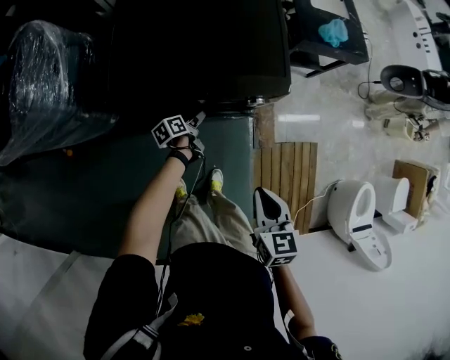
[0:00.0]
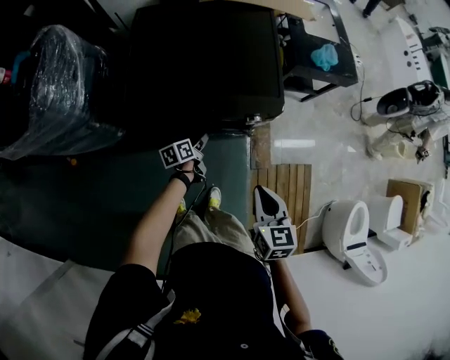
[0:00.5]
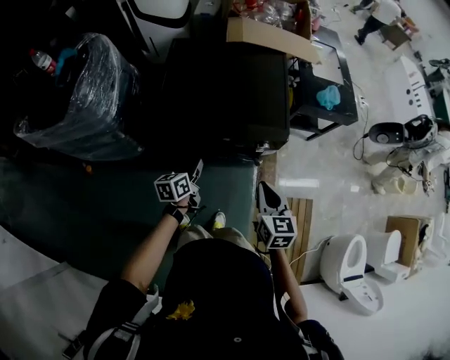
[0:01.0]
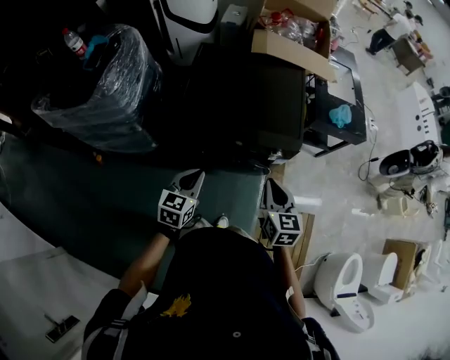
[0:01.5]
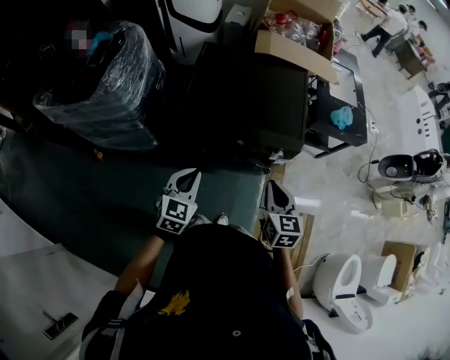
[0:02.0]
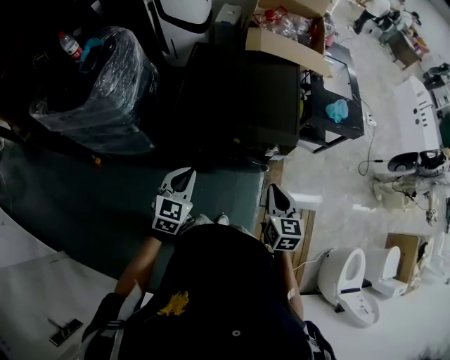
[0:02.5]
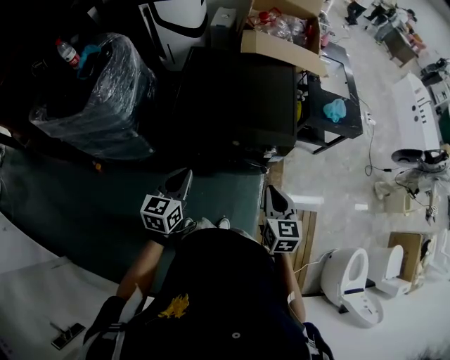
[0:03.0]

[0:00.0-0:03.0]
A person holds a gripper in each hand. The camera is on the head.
0:00.0 to 0:01.5: The right gripper travels upward, forward and to the left by some 15 cm; the left gripper shifts approximately 35 cm upward and backward, rotates around the line of its fingers by about 60 degrees, clockwise from behind, and closes its fingers.
0:01.5 to 0:03.0: The left gripper changes place by about 5 cm.

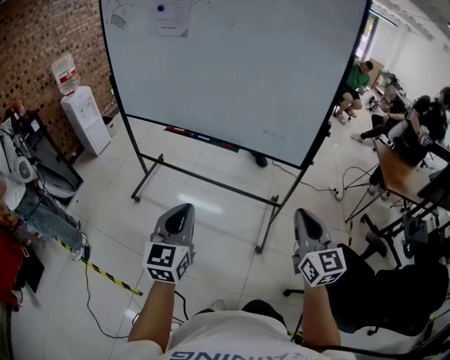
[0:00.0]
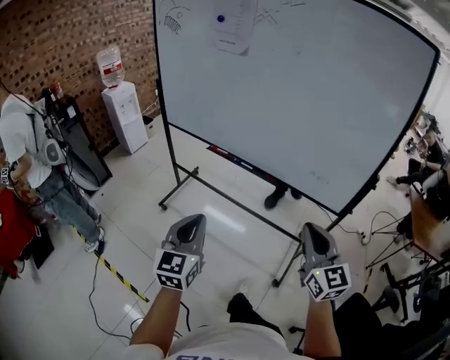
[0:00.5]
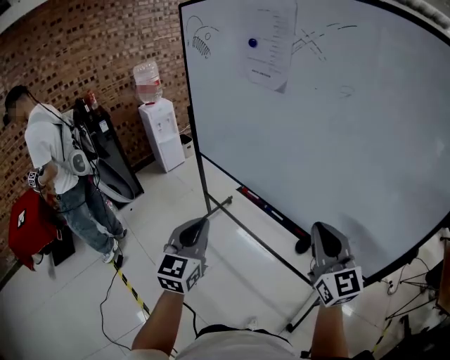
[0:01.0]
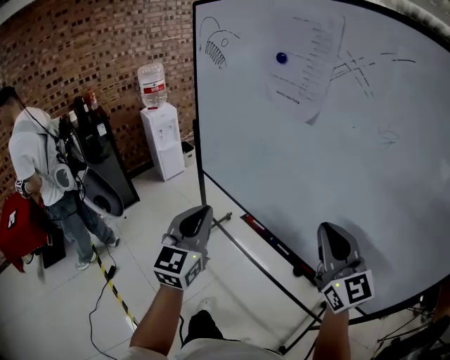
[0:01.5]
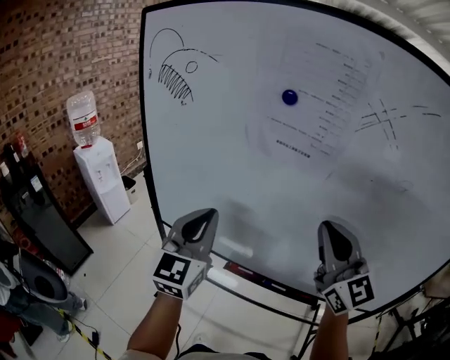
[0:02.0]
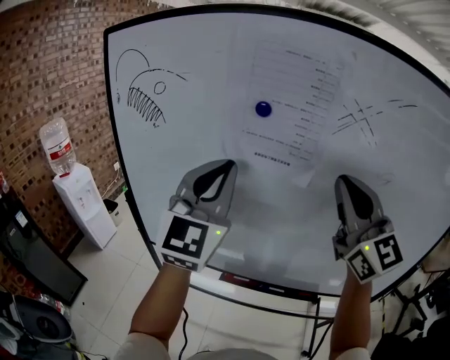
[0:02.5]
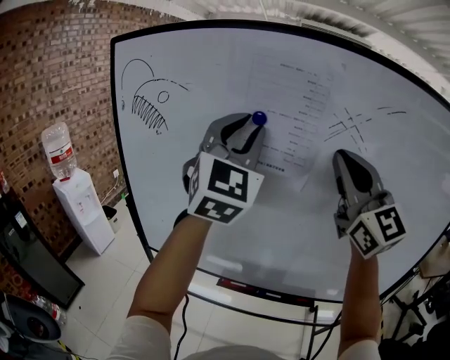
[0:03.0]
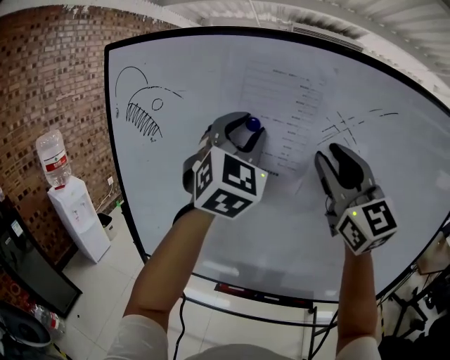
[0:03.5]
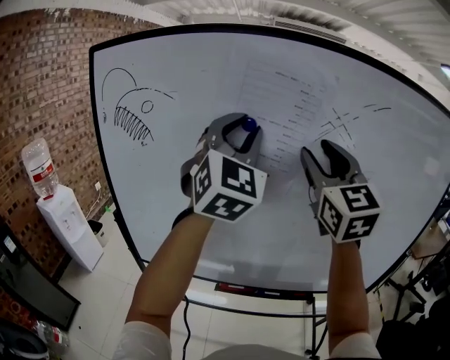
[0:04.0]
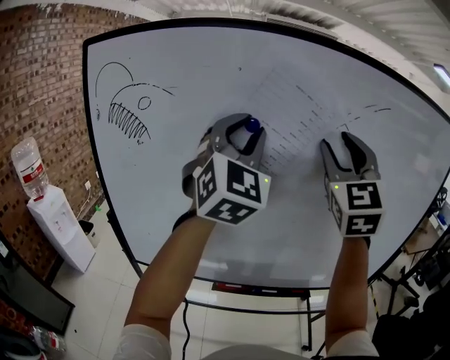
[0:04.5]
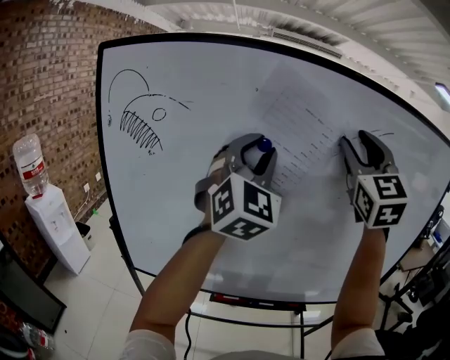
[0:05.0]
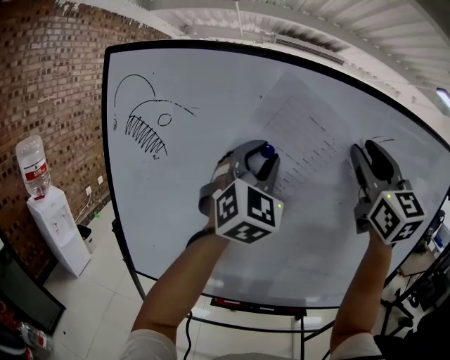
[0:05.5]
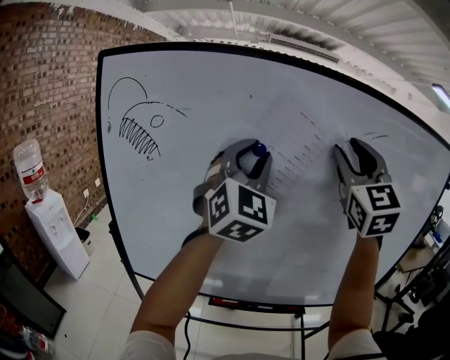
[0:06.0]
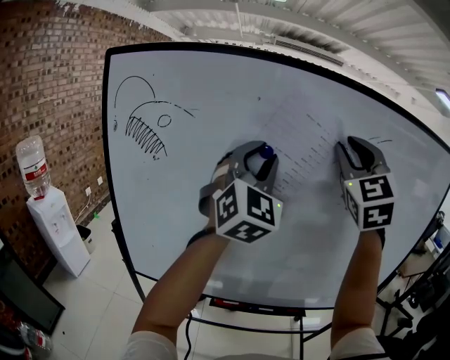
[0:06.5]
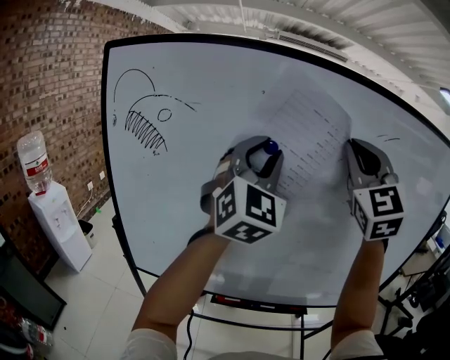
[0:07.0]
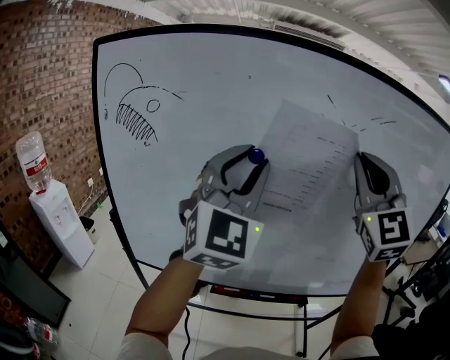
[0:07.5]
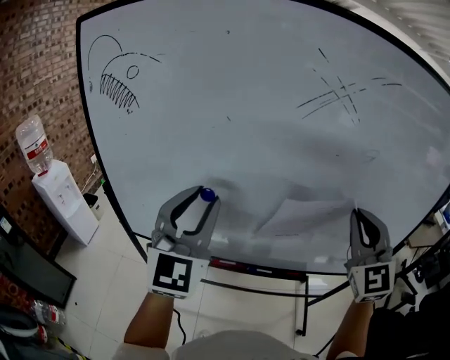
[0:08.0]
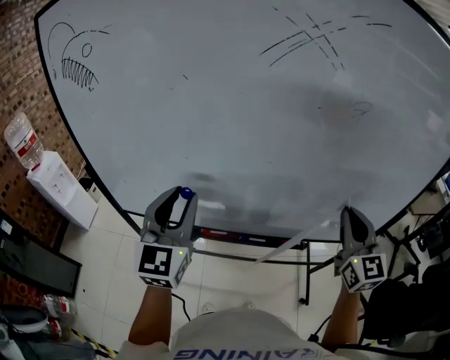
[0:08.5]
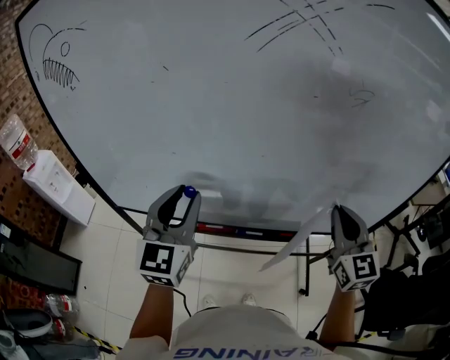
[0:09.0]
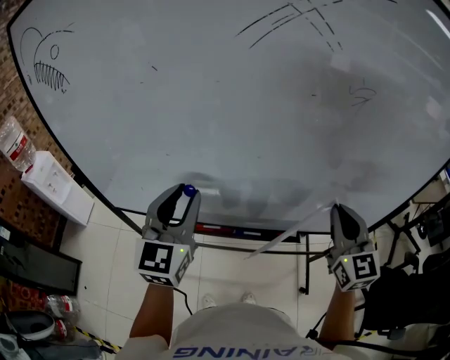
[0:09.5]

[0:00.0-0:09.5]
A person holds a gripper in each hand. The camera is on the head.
0:00.0 to 0:02.0: The two grippers travel together, forward, approximately 60 cm. The right gripper turns by some 20 degrees.
0:02.0 to 0:04.0: The left gripper is displaced upward and to the right by approximately 25 cm, rotates about 30 degrees, and opens; the right gripper is displaced upward and forward by approximately 20 cm, changes its angle by some 30 degrees, and opens.
0:04.0 to 0:05.5: The right gripper heads upward, covering approximately 10 cm.
0:05.5 to 0:07.5: The right gripper heads downward, covering about 5 cm, rotates some 20 degrees, and closes. Meanwhile the left gripper heads backward, covering approximately 5 cm.
0:07.5 to 0:09.5: The left gripper travels downward by some 25 cm, and turns by some 40 degrees. Meanwhile the right gripper travels downward and to the right by approximately 35 cm, and turns by some 40 degrees.

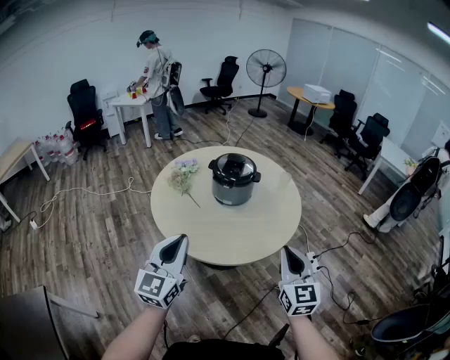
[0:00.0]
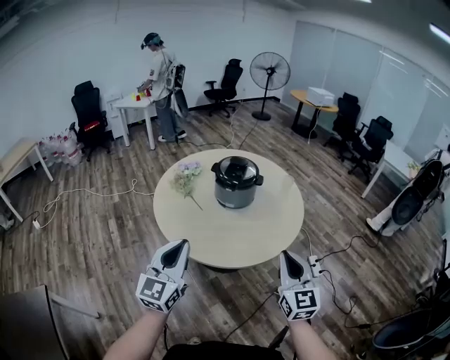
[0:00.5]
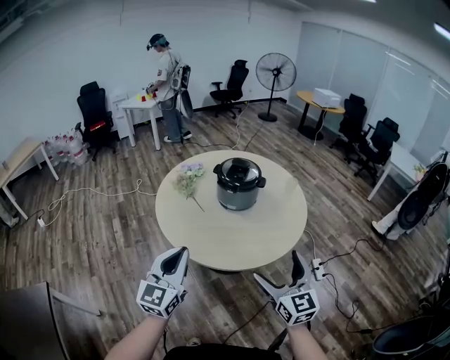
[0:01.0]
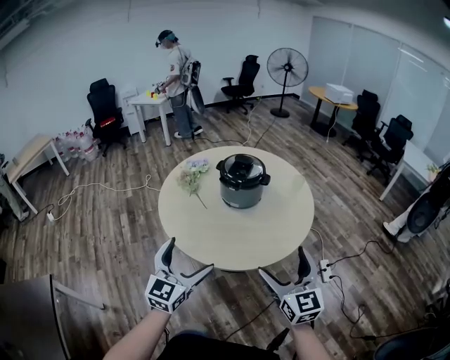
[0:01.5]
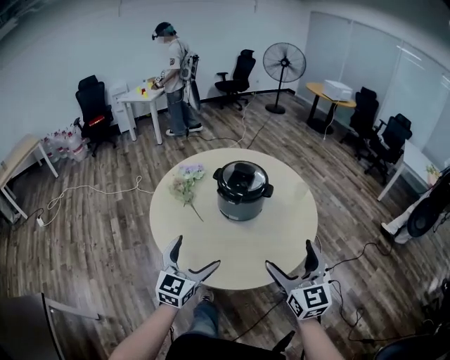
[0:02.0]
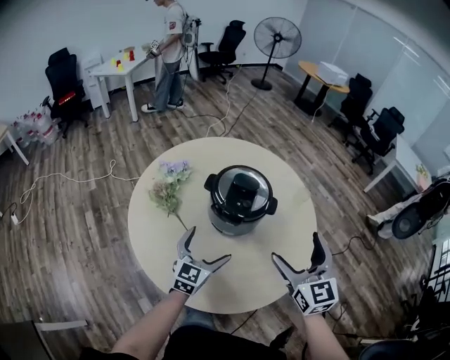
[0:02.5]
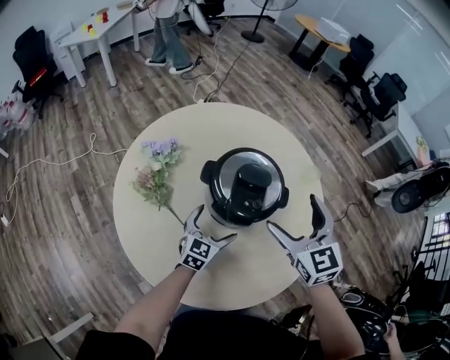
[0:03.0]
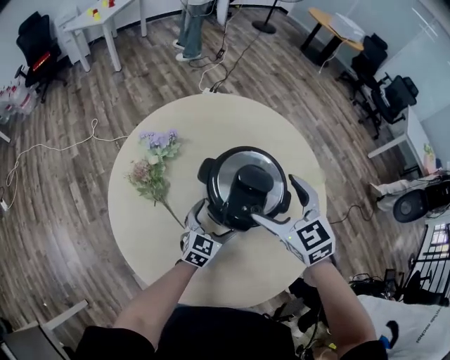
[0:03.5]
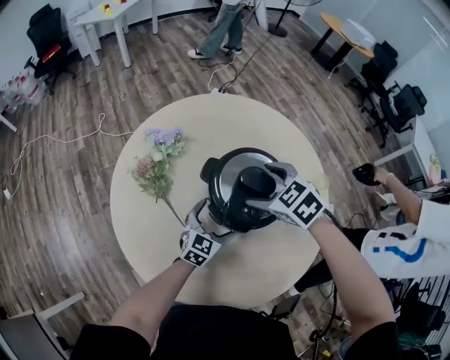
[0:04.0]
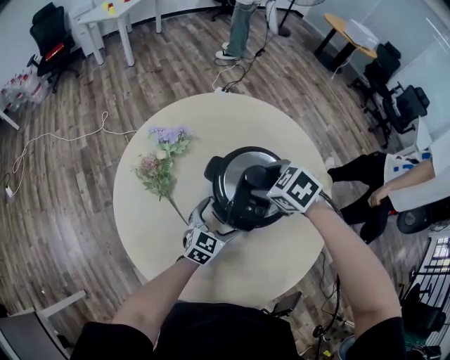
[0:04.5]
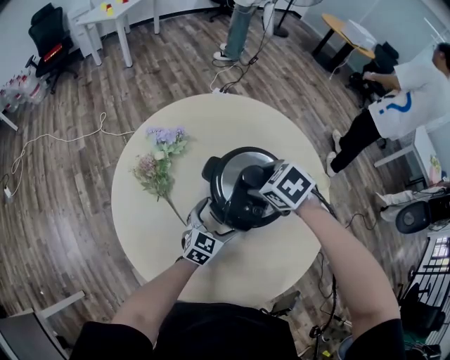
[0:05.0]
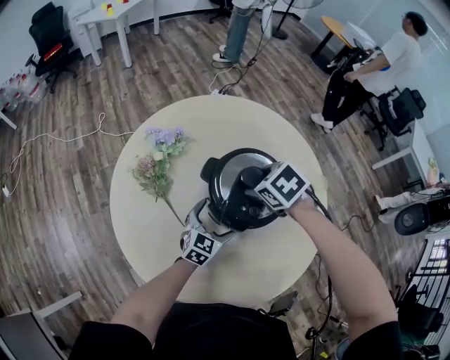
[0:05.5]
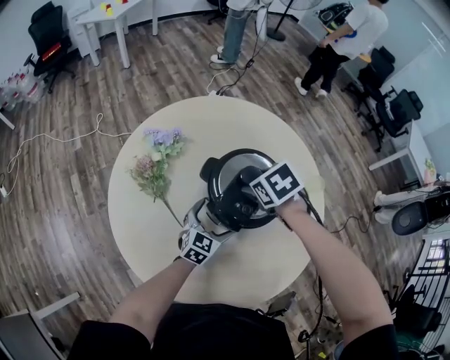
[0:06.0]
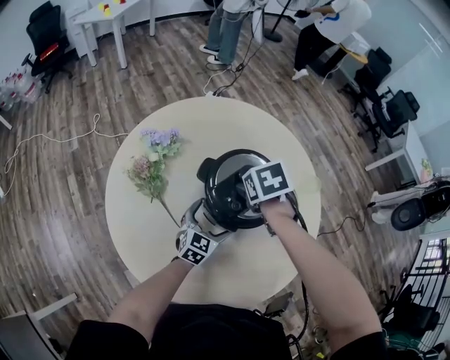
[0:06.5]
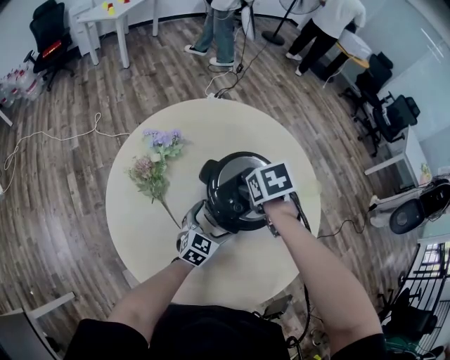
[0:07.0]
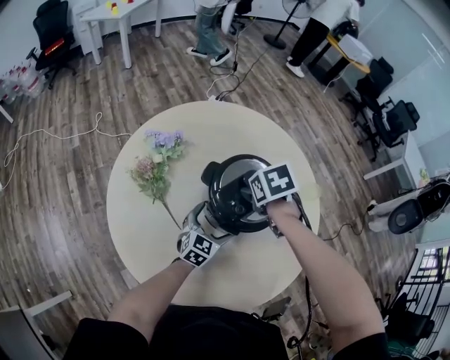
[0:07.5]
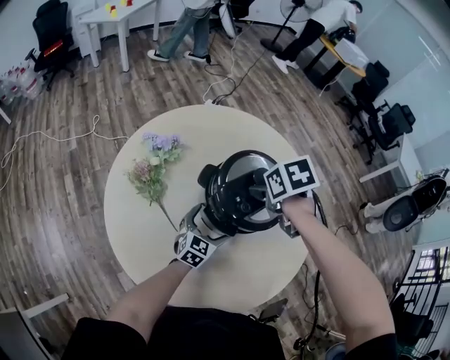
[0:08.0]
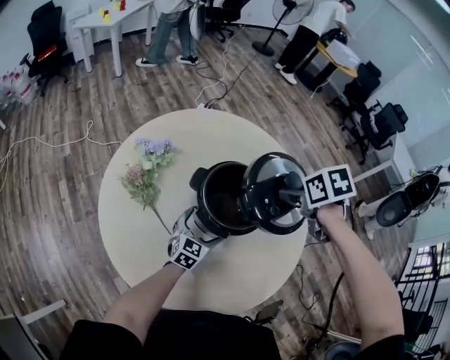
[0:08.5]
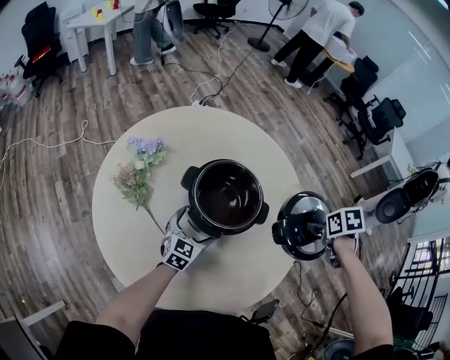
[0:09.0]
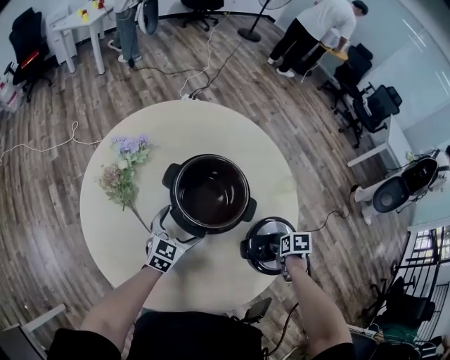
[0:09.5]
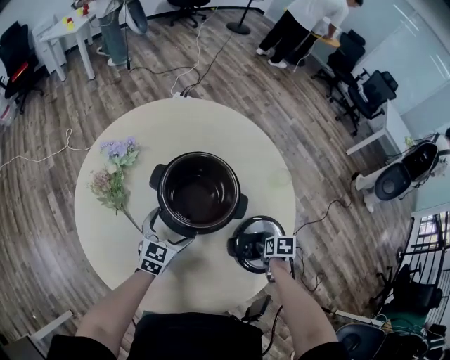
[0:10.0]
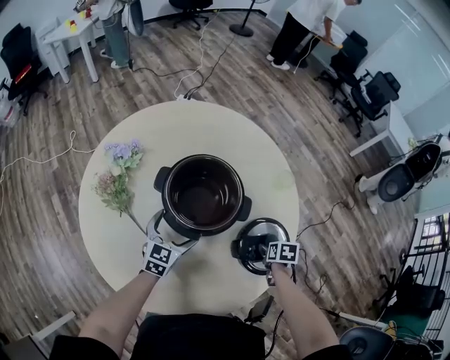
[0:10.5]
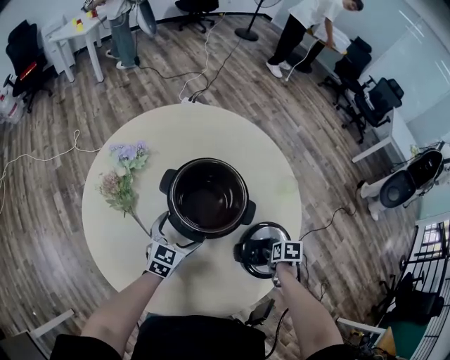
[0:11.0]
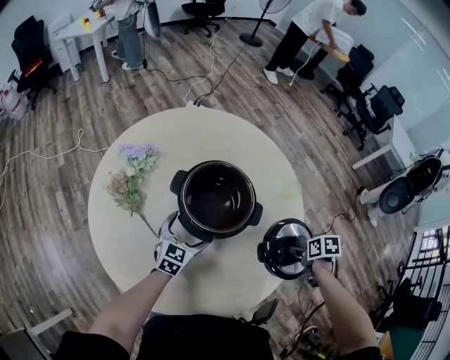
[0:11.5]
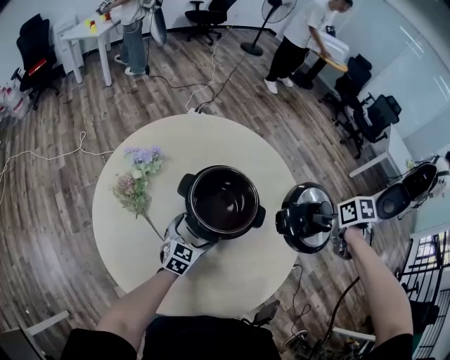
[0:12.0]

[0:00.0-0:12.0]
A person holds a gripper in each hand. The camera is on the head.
0:00.0 to 0:02.0: The right gripper goes roughly 15 cm forward, and opens its fingers, while the left gripper goes about 20 cm forward and downward, and opens its fingers.
0:02.0 to 0:04.0: The right gripper heads forward, covering about 40 cm, and angles its fingers downward, by some 50 degrees, while the left gripper shifts approximately 40 cm forward and downward, and rotates approximately 20 degrees.
0:04.0 to 0:06.0: The right gripper rotates about 30 degrees.
0:06.0 to 0:08.0: The right gripper ends up some 5 cm from where it was.
0:08.0 to 0:10.0: The right gripper ends up about 40 cm from where it was, and rotates about 30 degrees.
0:10.0 to 0:12.0: The right gripper goes roughly 25 cm upward.

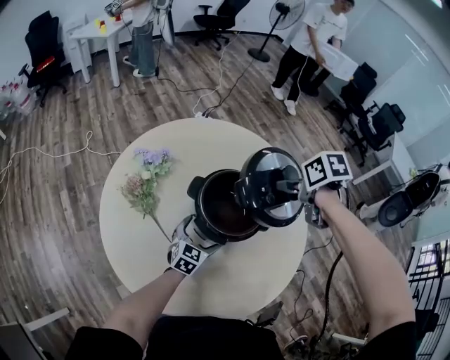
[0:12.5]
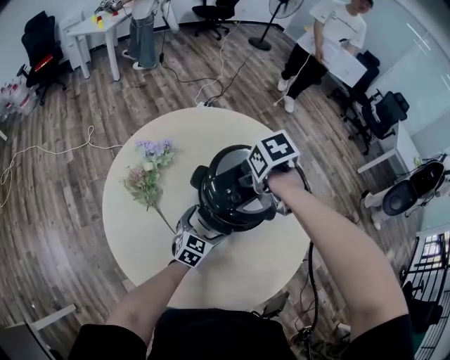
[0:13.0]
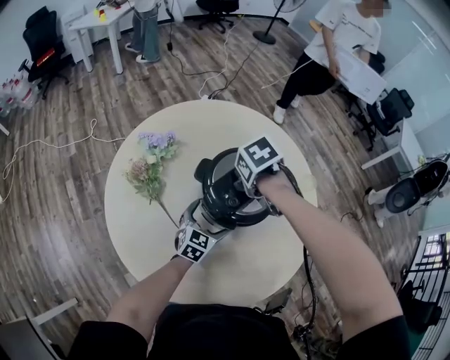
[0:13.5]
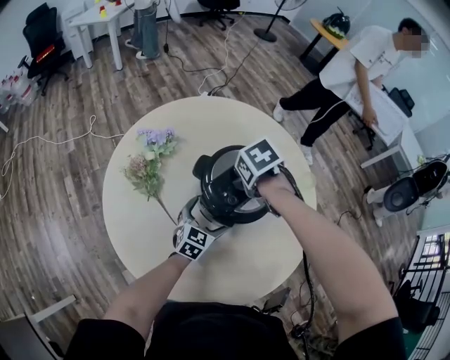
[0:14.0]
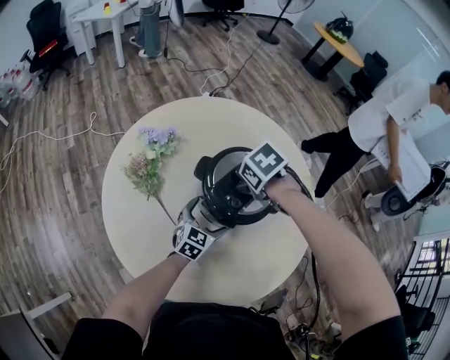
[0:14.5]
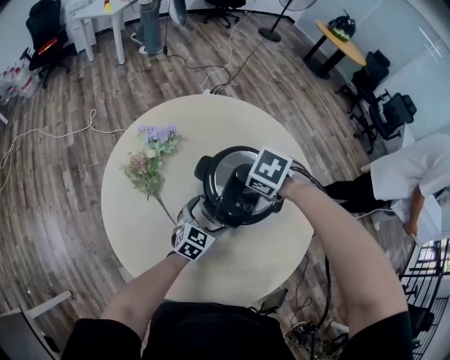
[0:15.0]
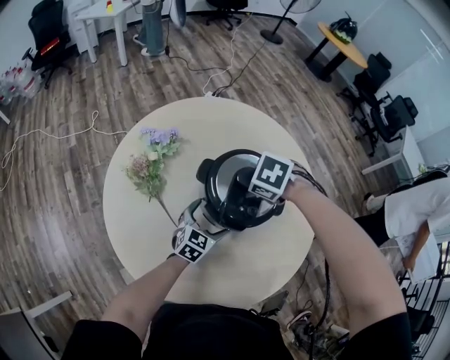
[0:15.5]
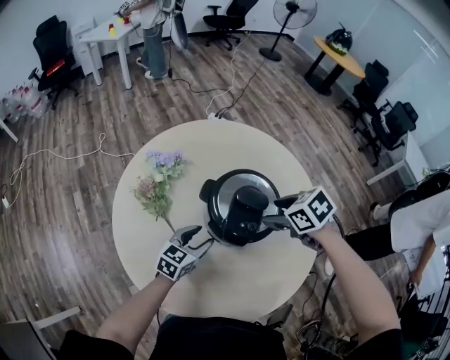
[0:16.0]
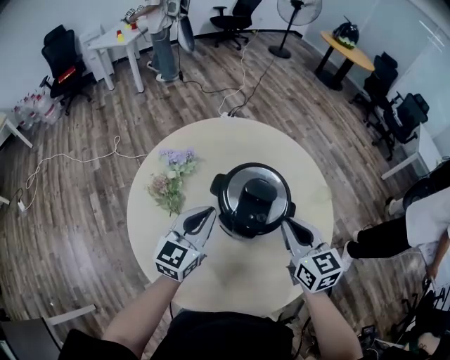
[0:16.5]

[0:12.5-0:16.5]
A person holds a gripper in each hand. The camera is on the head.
0:12.5 to 0:14.5: The right gripper shifts by approximately 15 cm, and swivels roughly 40 degrees.
0:14.5 to 0:16.5: The right gripper changes place by about 15 cm, points its fingers about 60 degrees further upward, and closes. The left gripper moves upward, some 20 cm, swivels roughly 20 degrees, and closes up.
